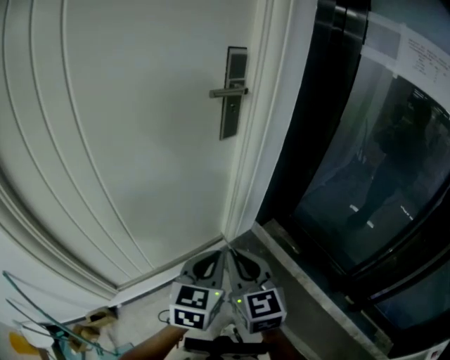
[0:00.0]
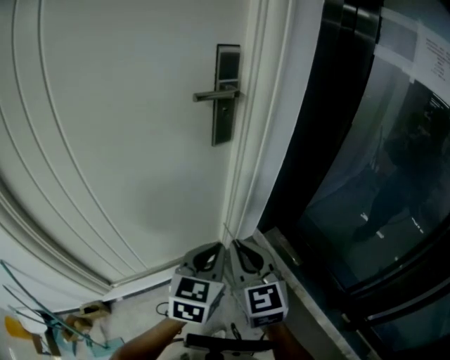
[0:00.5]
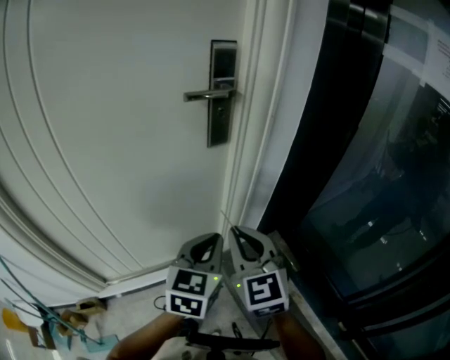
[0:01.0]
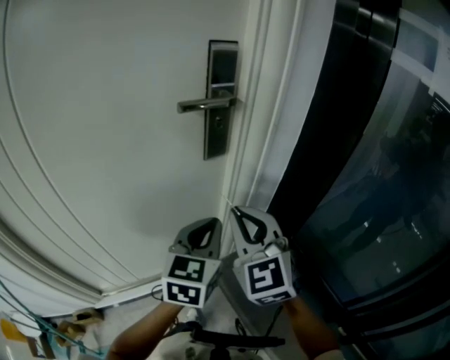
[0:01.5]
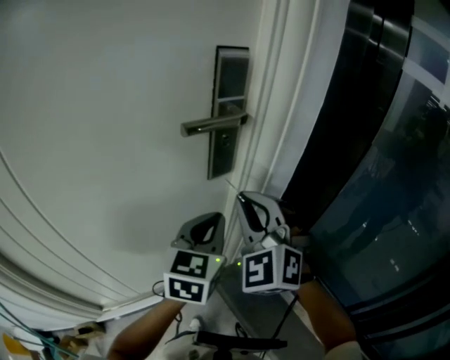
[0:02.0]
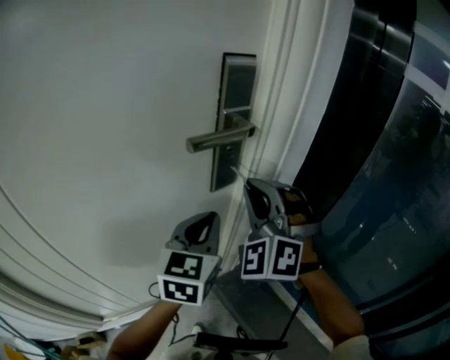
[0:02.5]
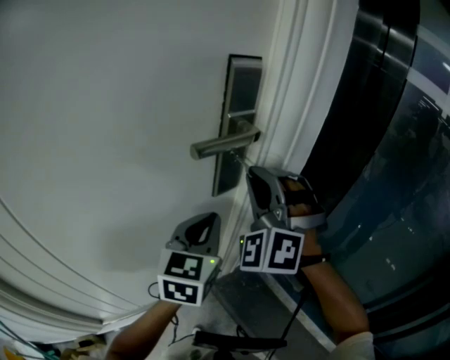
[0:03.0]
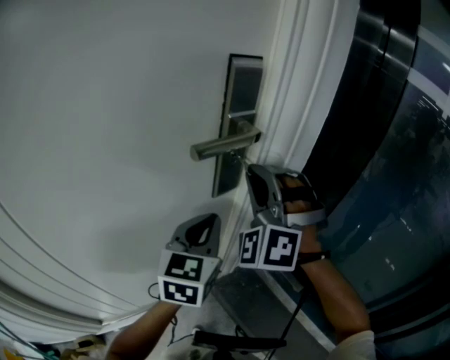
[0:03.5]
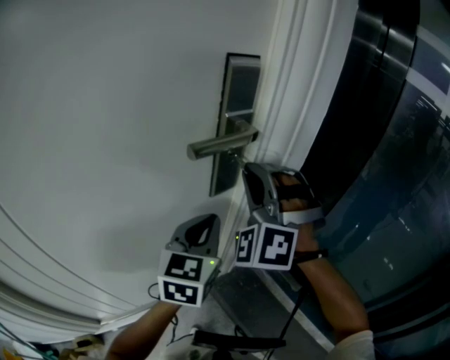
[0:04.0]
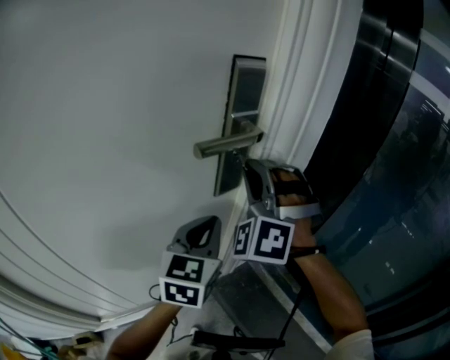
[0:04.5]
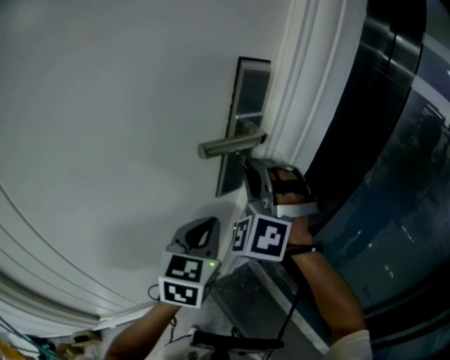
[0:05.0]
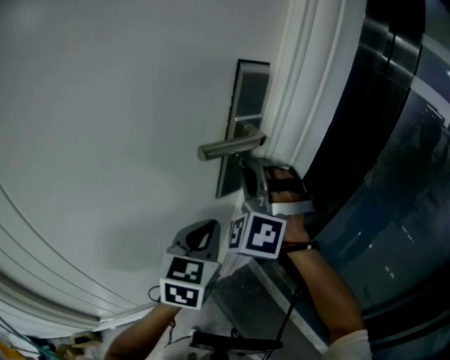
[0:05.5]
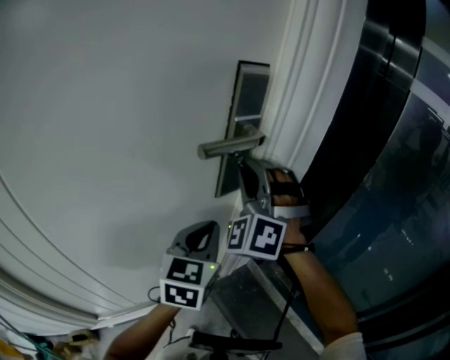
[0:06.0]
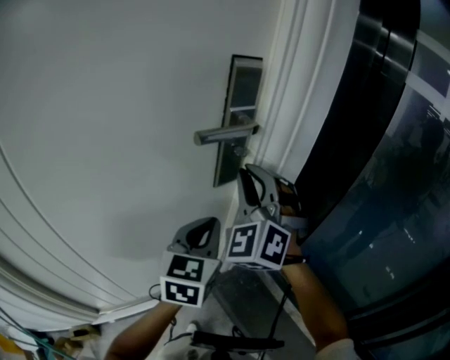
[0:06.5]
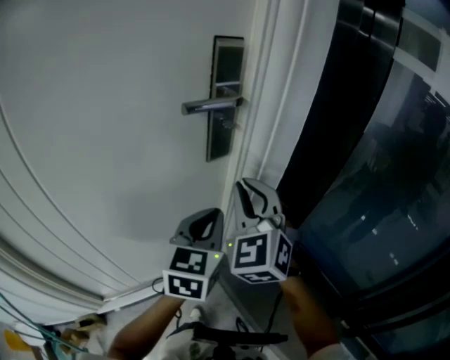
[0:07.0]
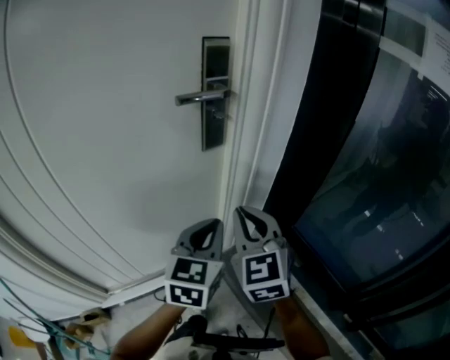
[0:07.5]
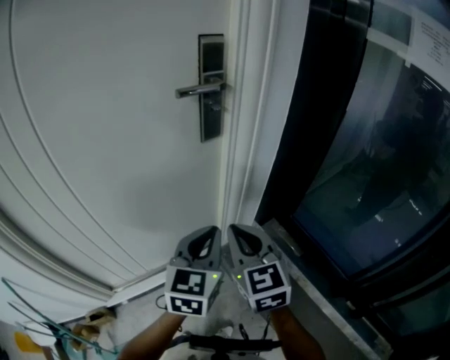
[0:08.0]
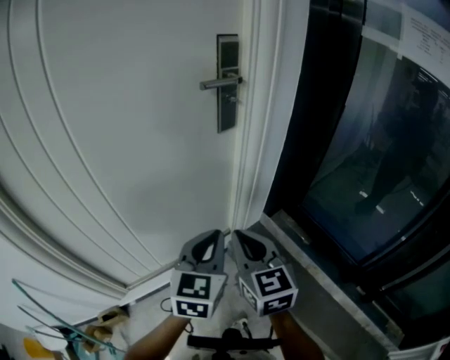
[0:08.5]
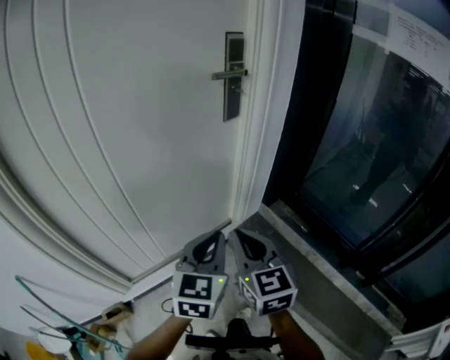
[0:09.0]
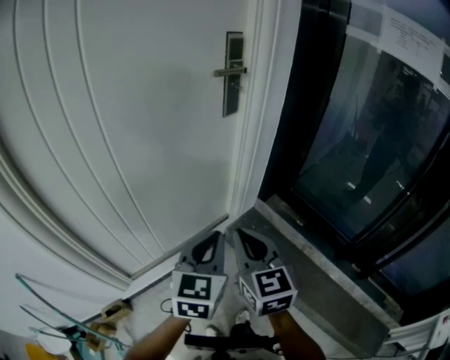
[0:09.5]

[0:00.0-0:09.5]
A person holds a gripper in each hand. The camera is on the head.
0:00.0 to 0:02.0: Both grippers move forward, roughly 30 cm. The right gripper rolls counterclockwise, seen from behind, by some 50 degrees.
0:02.0 to 0:04.0: The right gripper goes about 10 cm forward, and changes its angle by roughly 30 degrees, while the left gripper moves some 5 cm.
0:04.0 to 0:05.5: The grippers move only a little.
0:05.5 to 0:07.5: The left gripper moves backward and to the right, some 15 cm. Meanwhile the right gripper moves backward and downward, some 25 cm, and twists roughly 60 degrees clockwise, seen from behind.
0:07.5 to 0:09.5: Both grippers move backward and to the left, some 25 cm. The right gripper turns by about 20 degrees.

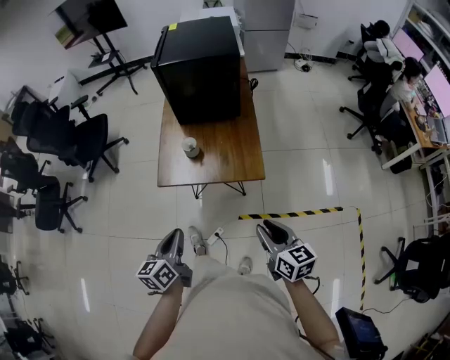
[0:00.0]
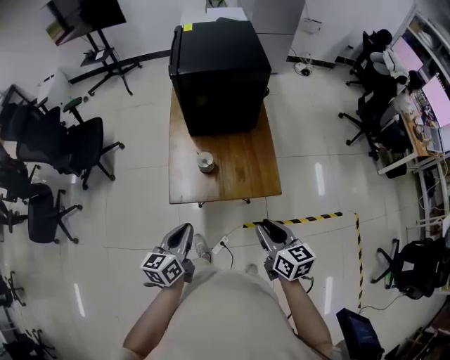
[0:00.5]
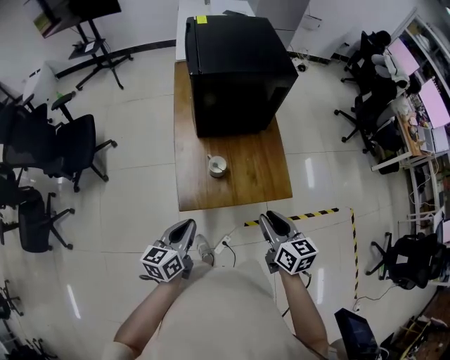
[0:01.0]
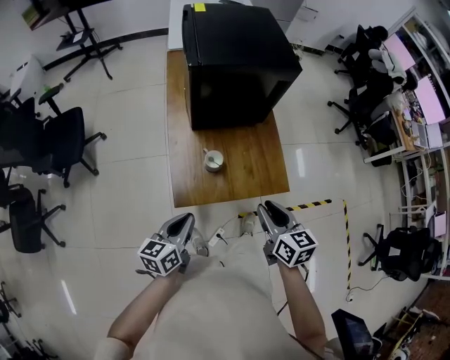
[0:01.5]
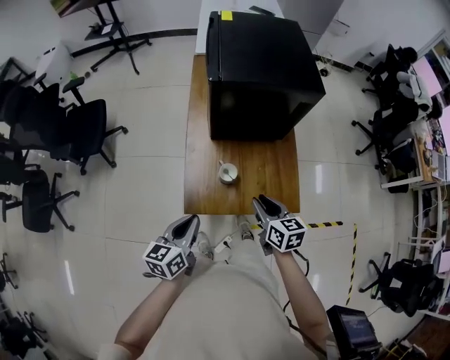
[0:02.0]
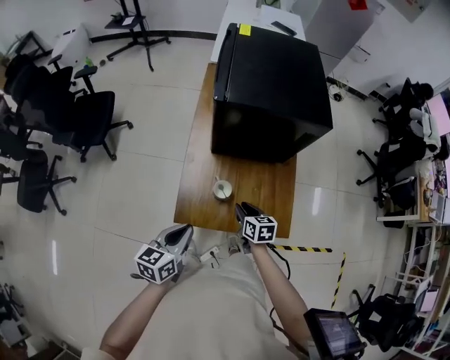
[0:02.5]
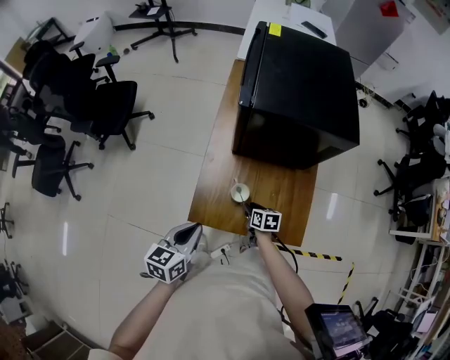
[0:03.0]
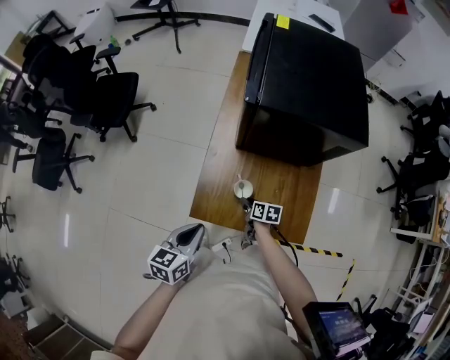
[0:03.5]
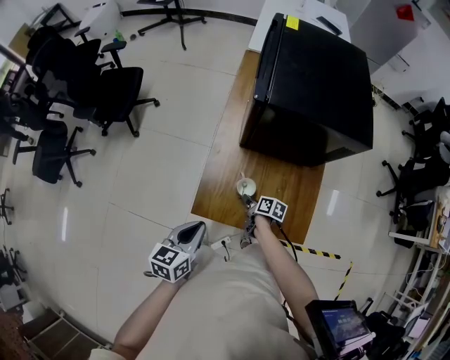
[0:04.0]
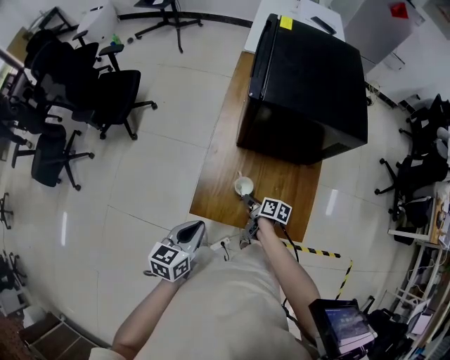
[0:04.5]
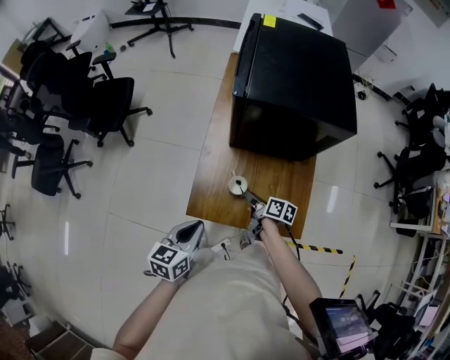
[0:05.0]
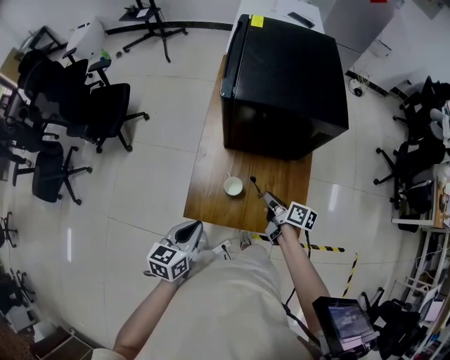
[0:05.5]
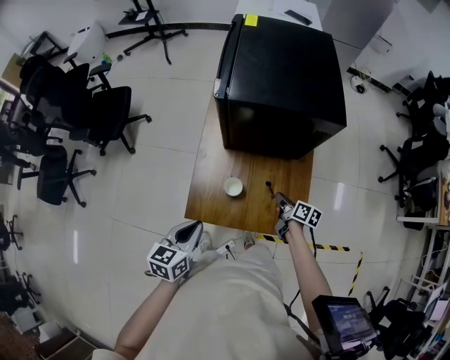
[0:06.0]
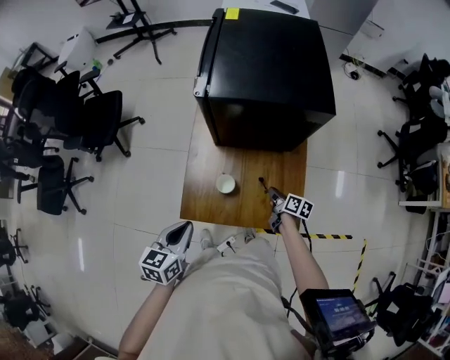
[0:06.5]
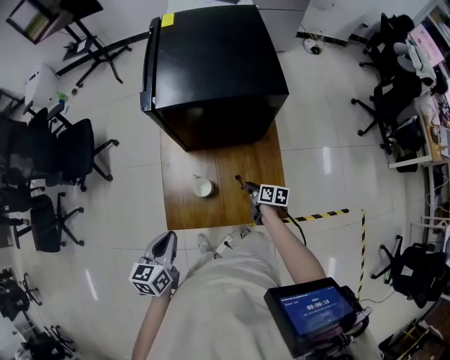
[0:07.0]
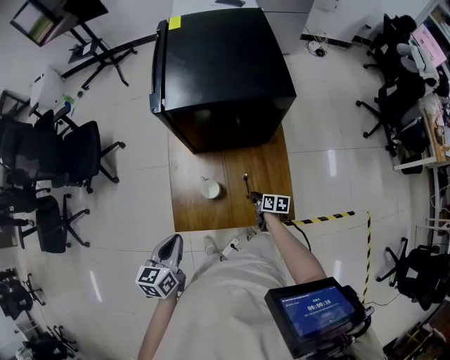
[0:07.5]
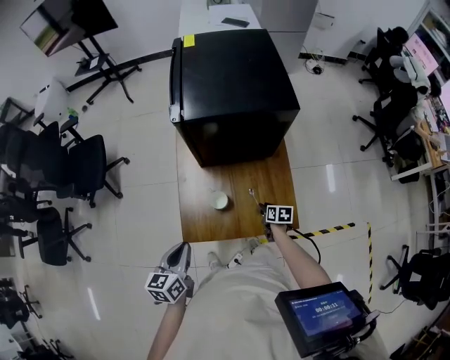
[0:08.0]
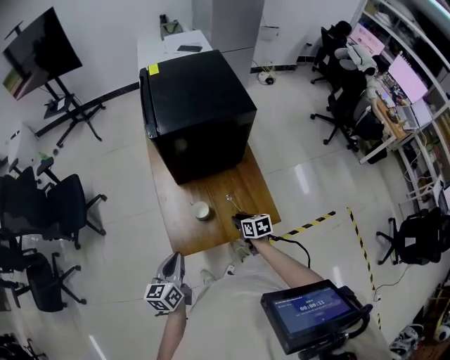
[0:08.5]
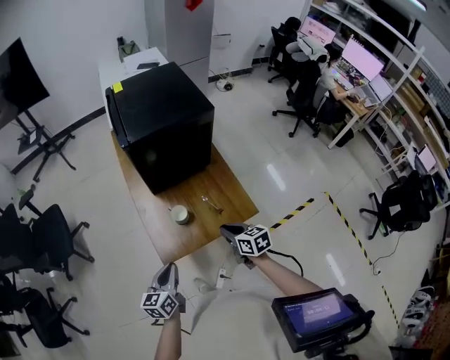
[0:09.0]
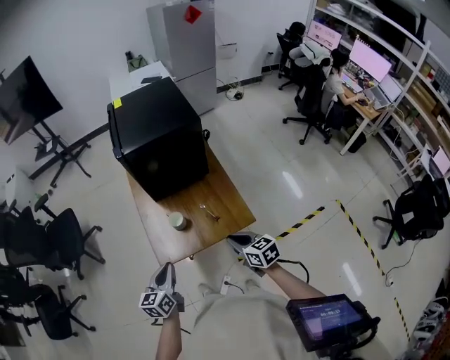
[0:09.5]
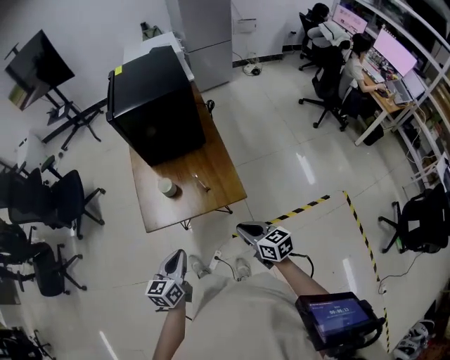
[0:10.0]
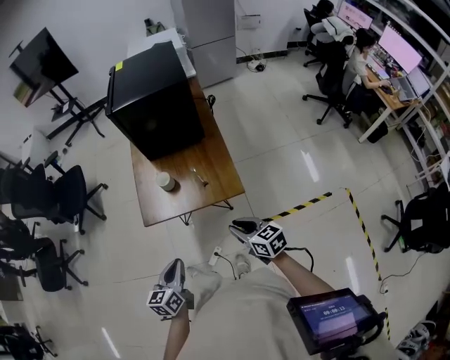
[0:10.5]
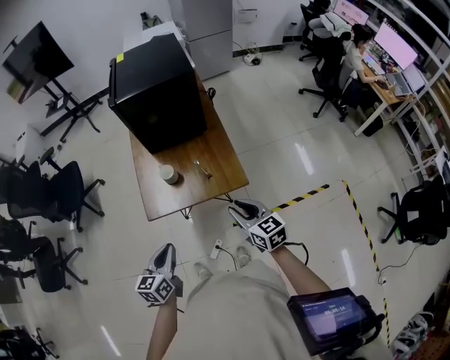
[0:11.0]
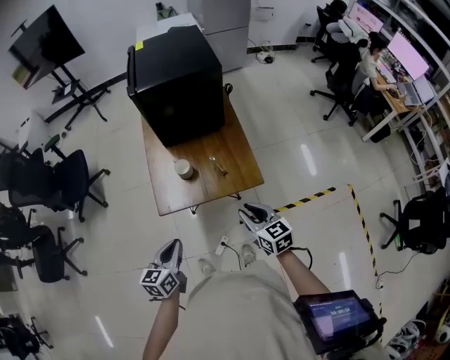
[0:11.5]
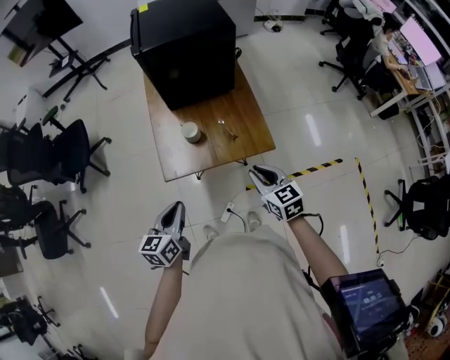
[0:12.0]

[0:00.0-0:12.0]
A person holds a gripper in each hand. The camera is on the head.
0:00.0 to 0:02.0: The two grippers go roughly 30 cm forward and to the left.
0:02.0 to 0:04.0: The right gripper is displaced downward and forward by approximately 25 cm, and changes its angle by roughly 40 degrees.
0:04.0 to 0:06.0: The right gripper goes some 20 cm to the right and upward.
0:06.0 to 0:08.0: The right gripper is displaced downward by about 10 cm, and turns by approximately 20 degrees.
0:08.0 to 0:10.0: The left gripper is displaced backward and to the right by approximately 25 cm. Meanwhile the right gripper goes roughly 35 cm backward and upward, turns by roughly 40 degrees, and closes up.
0:10.0 to 0:12.0: The right gripper moves to the left and forward, approximately 10 cm. Meanwhile the left gripper moves to the left, roughly 10 cm.

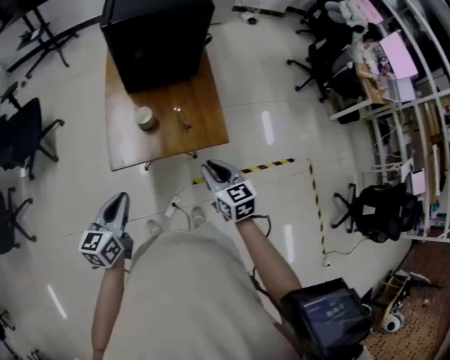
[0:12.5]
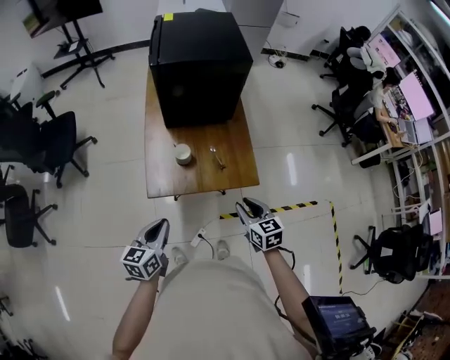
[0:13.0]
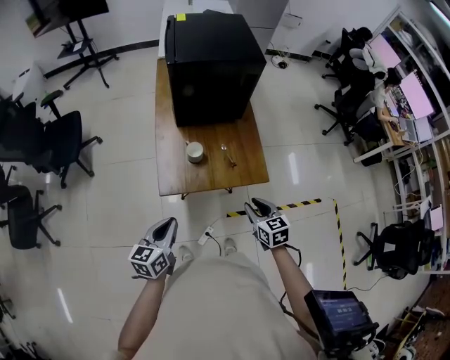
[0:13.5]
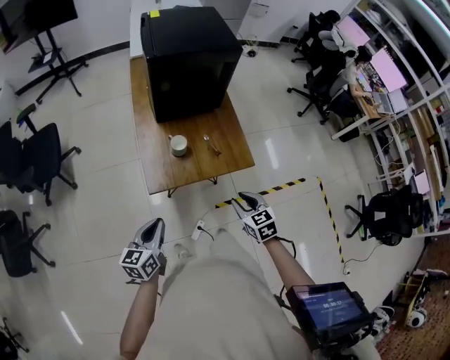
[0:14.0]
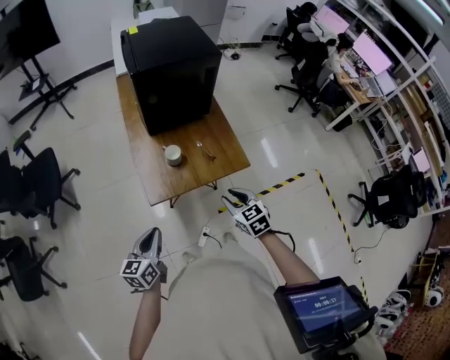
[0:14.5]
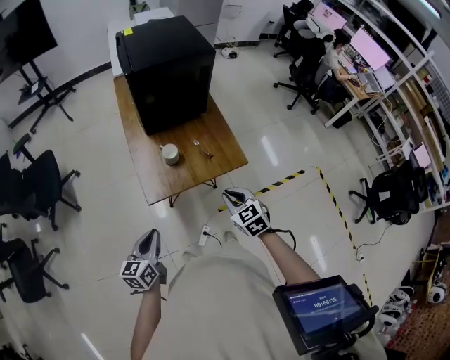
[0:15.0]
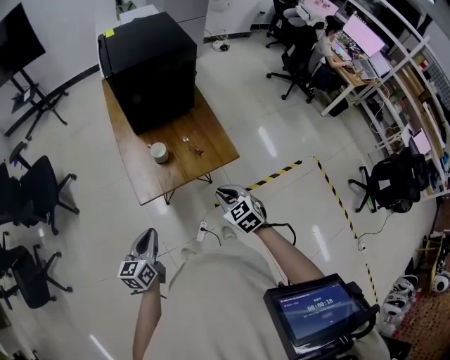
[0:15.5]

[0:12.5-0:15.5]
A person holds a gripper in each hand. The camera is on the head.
0:12.5 to 0:14.0: The left gripper shifts approximately 5 cm to the left, while the right gripper goes roughly 5 cm backward.
0:14.0 to 0:15.5: There are only small adjustments of the grippers.

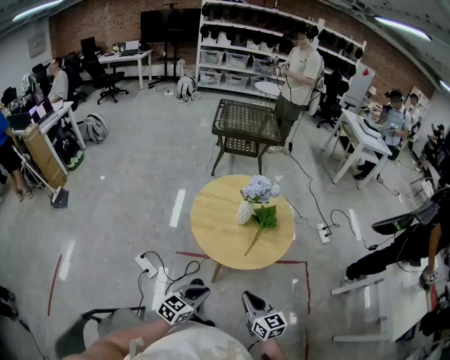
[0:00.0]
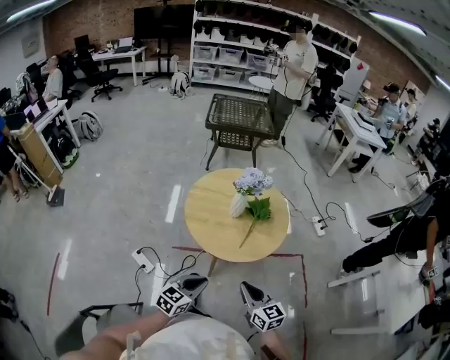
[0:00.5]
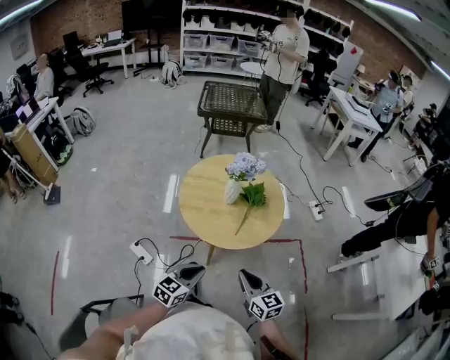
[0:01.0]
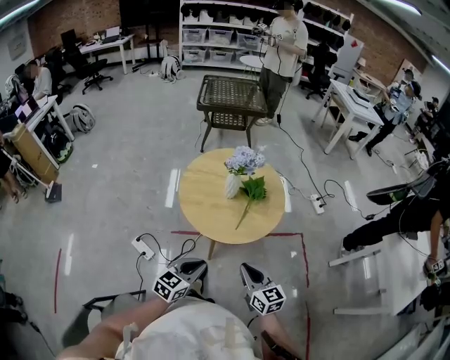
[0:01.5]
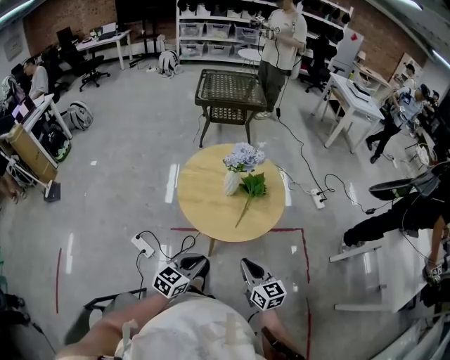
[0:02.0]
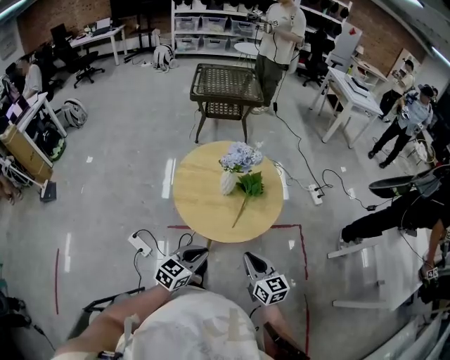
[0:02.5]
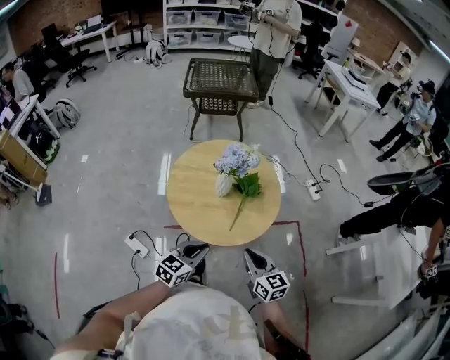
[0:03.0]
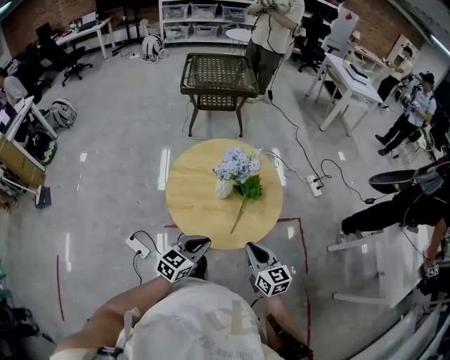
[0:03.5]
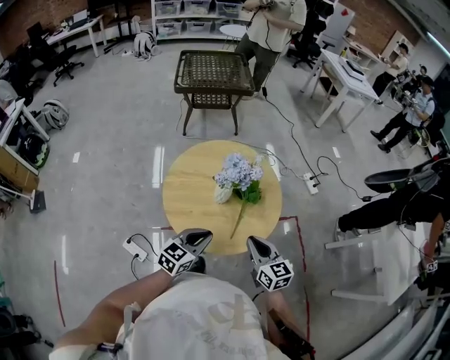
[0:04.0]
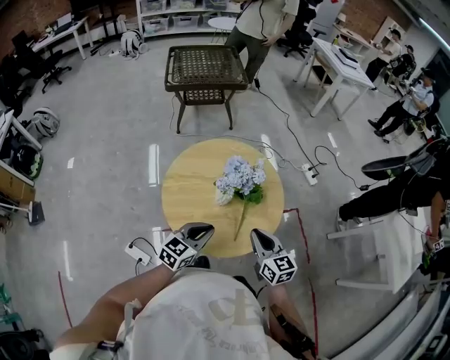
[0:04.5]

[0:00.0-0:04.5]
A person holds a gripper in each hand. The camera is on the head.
0:00.0 to 0:02.0: There are only small adjustments of the grippers.
0:02.0 to 0:04.5: Both grippers travel together forward, roughly 20 cm.
